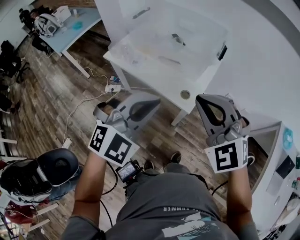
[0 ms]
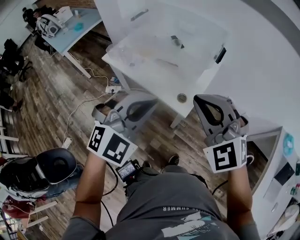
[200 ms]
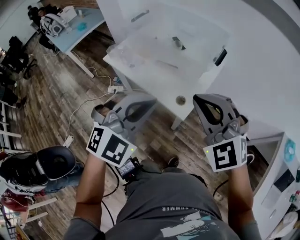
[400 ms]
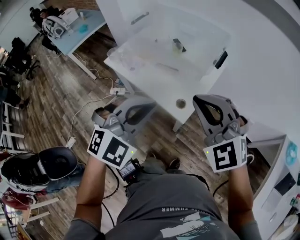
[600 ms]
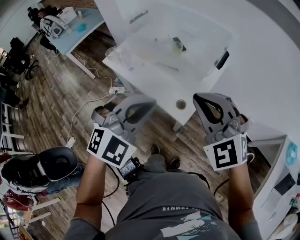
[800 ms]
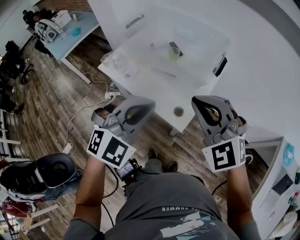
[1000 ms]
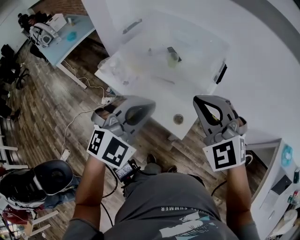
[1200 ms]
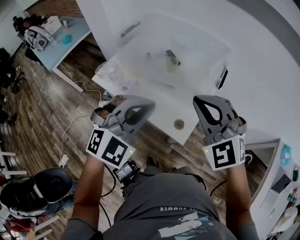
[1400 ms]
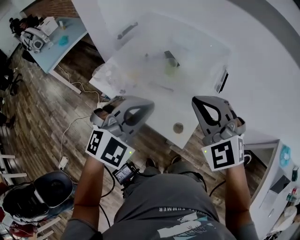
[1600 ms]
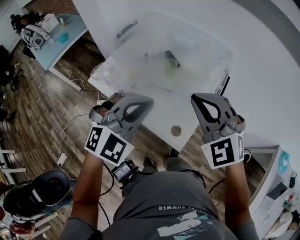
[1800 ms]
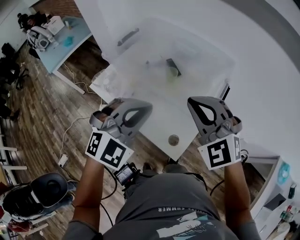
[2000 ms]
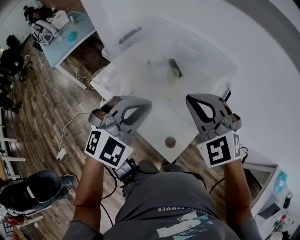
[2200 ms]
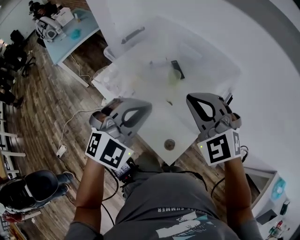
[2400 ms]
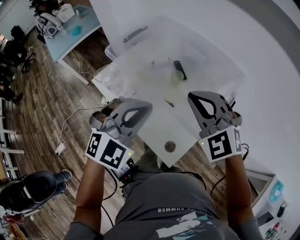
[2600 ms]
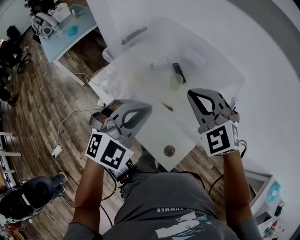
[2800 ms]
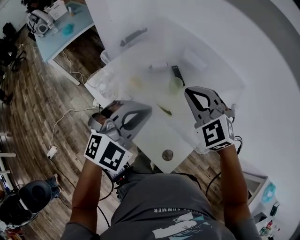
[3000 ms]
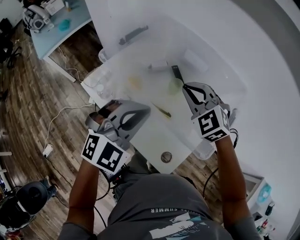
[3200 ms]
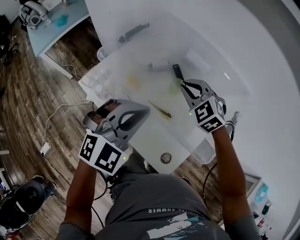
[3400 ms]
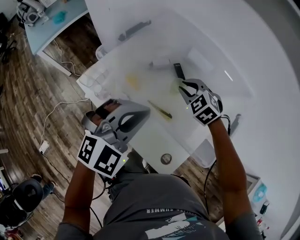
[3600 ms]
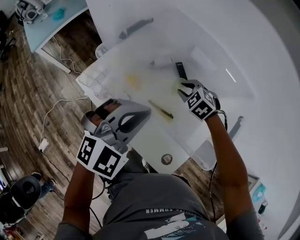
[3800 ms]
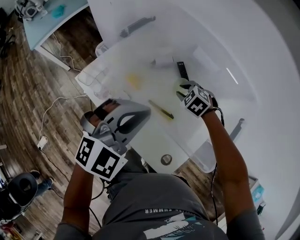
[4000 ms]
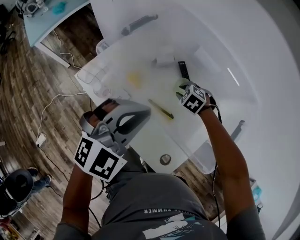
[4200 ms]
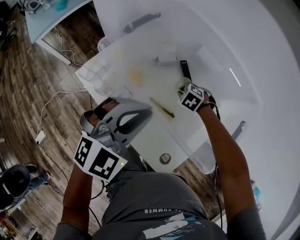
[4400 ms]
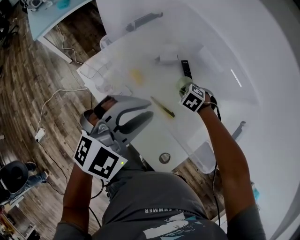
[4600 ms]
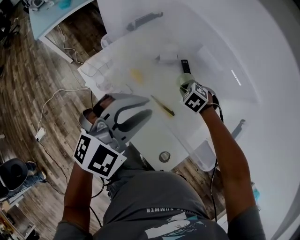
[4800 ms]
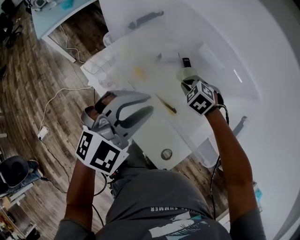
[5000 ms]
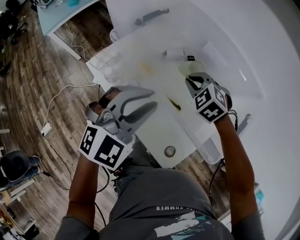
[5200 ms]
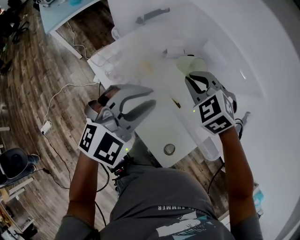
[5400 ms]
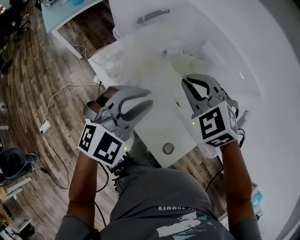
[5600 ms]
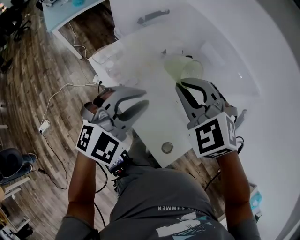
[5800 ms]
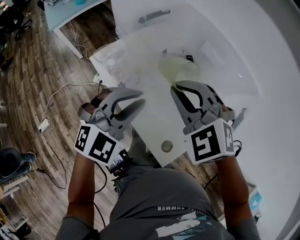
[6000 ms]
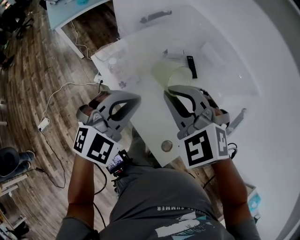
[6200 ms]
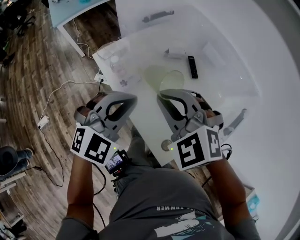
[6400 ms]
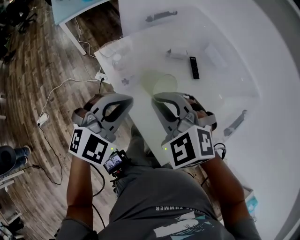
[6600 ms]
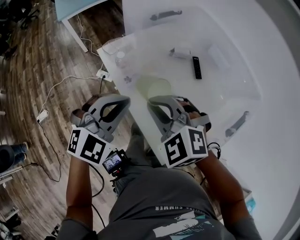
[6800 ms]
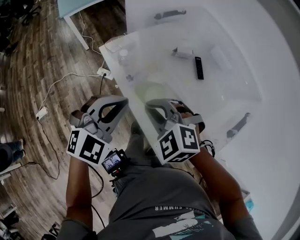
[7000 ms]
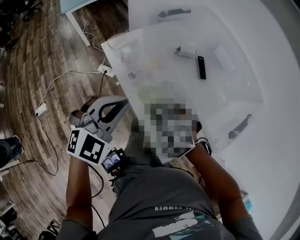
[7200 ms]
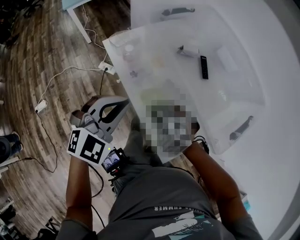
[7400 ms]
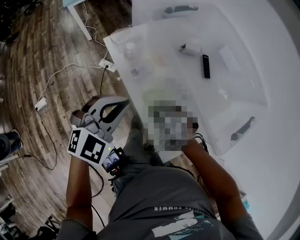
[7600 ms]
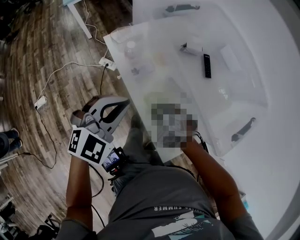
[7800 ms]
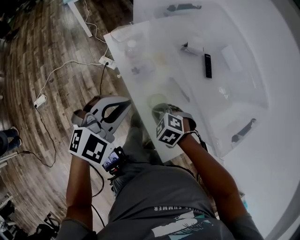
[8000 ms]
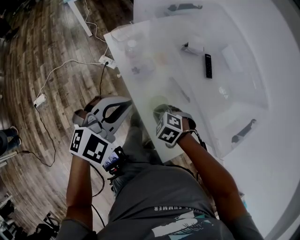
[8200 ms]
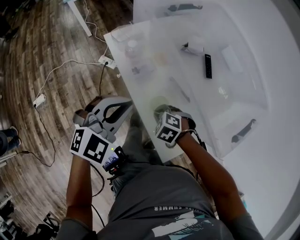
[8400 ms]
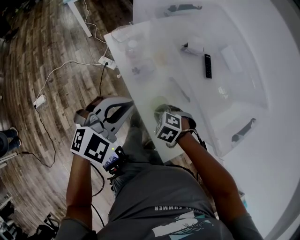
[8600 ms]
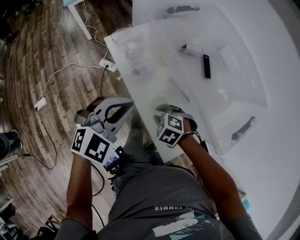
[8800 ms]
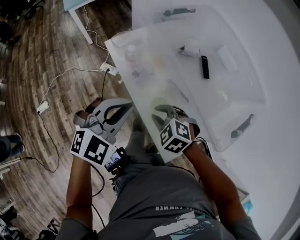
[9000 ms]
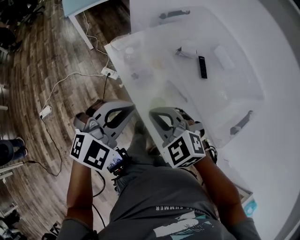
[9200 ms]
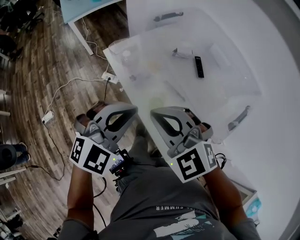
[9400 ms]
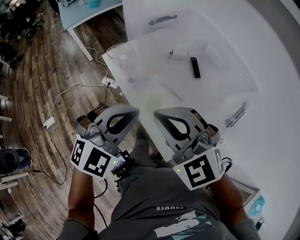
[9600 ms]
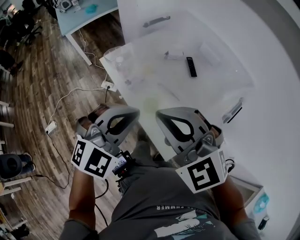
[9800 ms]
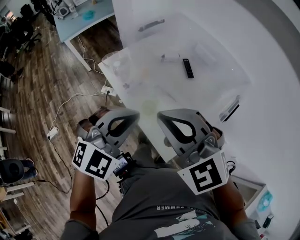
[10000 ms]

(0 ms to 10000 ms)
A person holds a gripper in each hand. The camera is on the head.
0 ms - 1400 ms: Both grippers travel together forward, about 15 cm.
1400 ms - 2800 ms: The grippers both shift forward by roughly 20 cm.
2800 ms - 4200 ms: The right gripper moves downward and forward, about 35 cm, angles its fingers downward, by about 50 degrees, and opens its fingers, while the left gripper shifts approximately 10 cm forward and to the left.
4200 ms - 5800 ms: The right gripper moves upward, roughly 30 cm, tilts its fingers about 40 degrees upward, and closes its fingers, while the left gripper changes place by approximately 5 cm, and opens up.
5800 ms - 7200 ms: The left gripper is displaced to the left by about 10 cm, and closes its fingers; the right gripper shifts roughly 20 cm downward, to the left and backward, and turns by about 20 degrees.
7200 ms - 8600 ms: The right gripper moves downward, some 15 cm, and changes its angle by roughly 30 degrees.
8600 ms - 10000 ms: The left gripper moves upward, about 10 cm. Meanwhile the right gripper travels upward by approximately 40 cm, and tips its fingers upward by roughly 60 degrees.

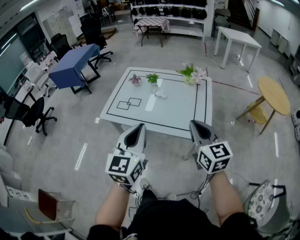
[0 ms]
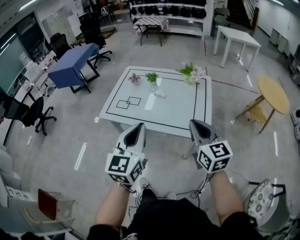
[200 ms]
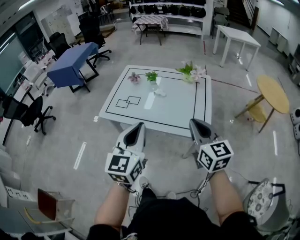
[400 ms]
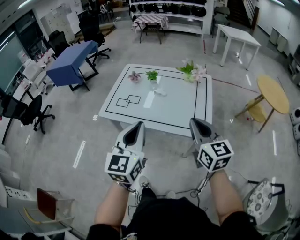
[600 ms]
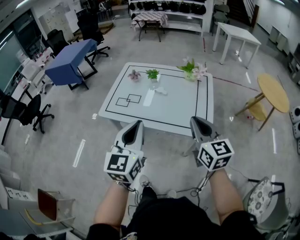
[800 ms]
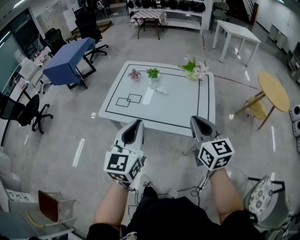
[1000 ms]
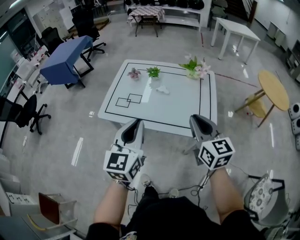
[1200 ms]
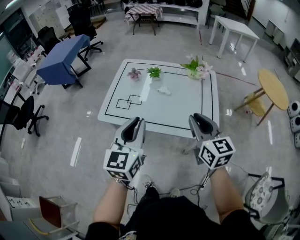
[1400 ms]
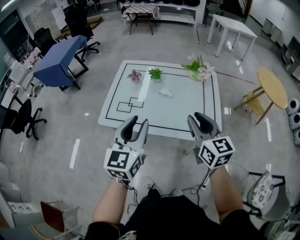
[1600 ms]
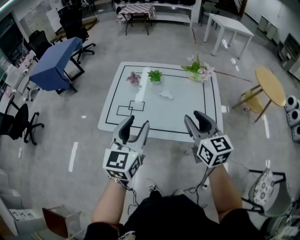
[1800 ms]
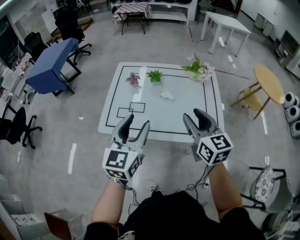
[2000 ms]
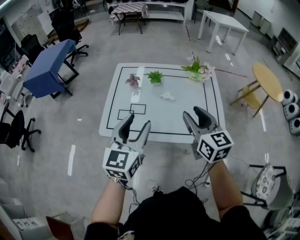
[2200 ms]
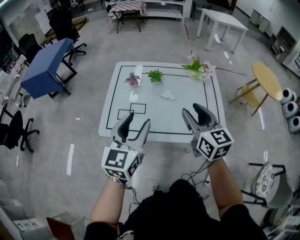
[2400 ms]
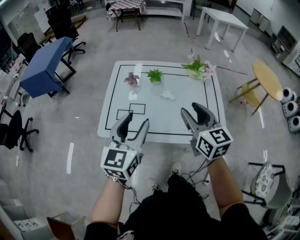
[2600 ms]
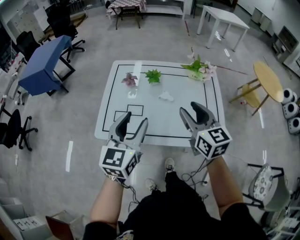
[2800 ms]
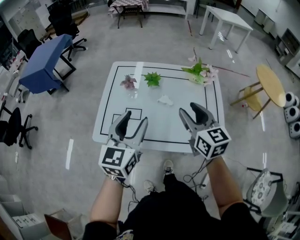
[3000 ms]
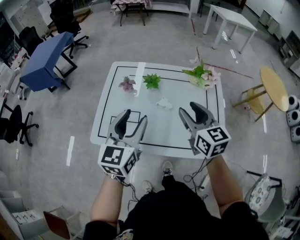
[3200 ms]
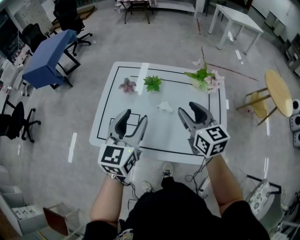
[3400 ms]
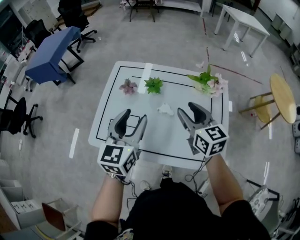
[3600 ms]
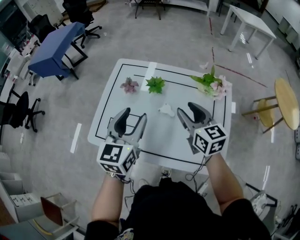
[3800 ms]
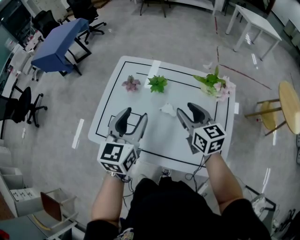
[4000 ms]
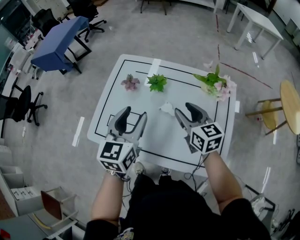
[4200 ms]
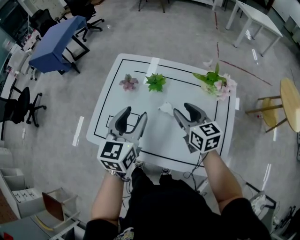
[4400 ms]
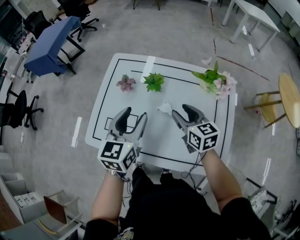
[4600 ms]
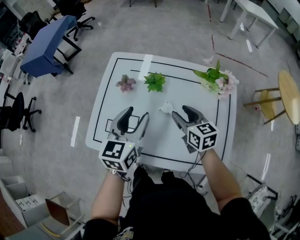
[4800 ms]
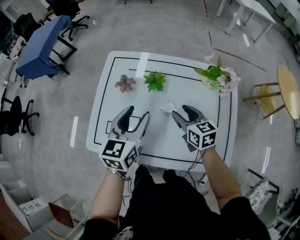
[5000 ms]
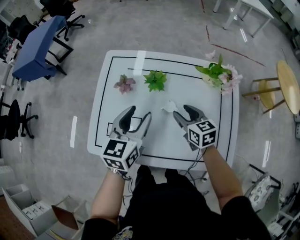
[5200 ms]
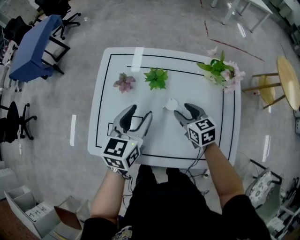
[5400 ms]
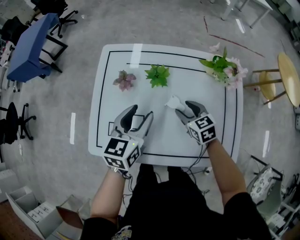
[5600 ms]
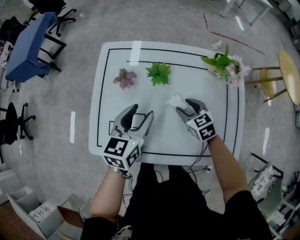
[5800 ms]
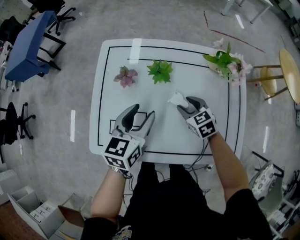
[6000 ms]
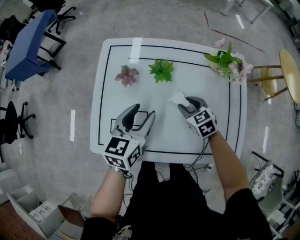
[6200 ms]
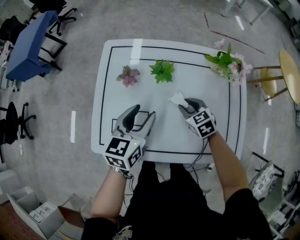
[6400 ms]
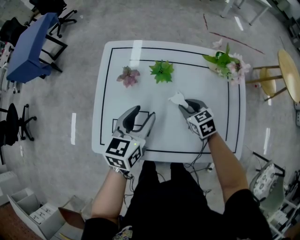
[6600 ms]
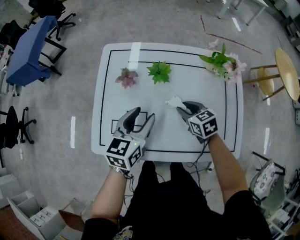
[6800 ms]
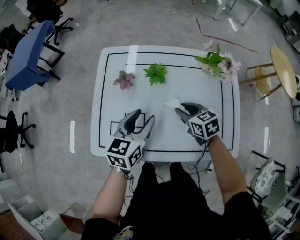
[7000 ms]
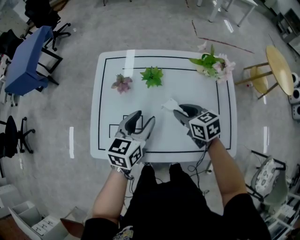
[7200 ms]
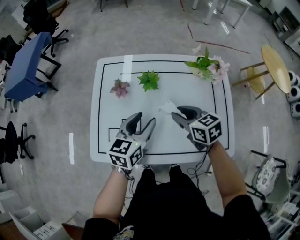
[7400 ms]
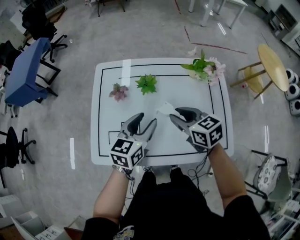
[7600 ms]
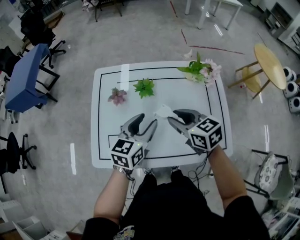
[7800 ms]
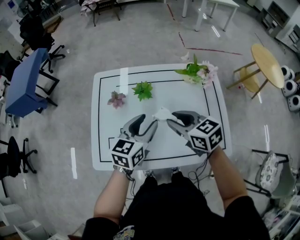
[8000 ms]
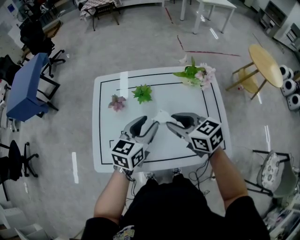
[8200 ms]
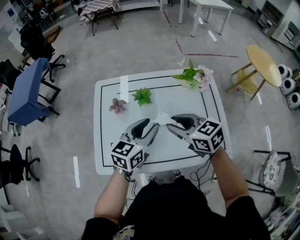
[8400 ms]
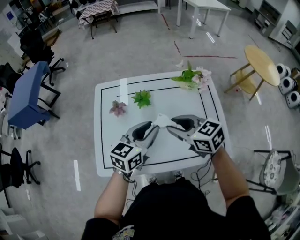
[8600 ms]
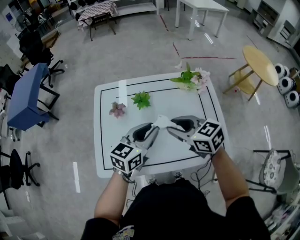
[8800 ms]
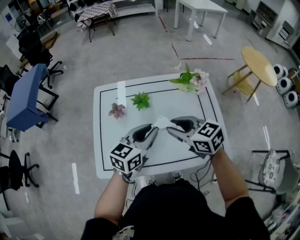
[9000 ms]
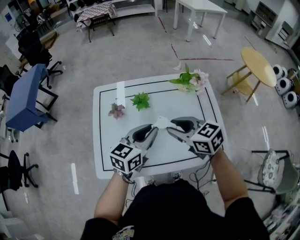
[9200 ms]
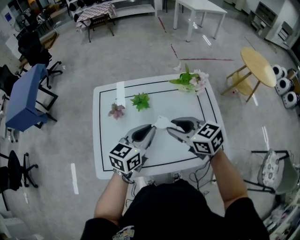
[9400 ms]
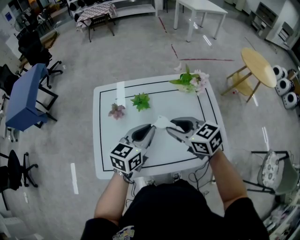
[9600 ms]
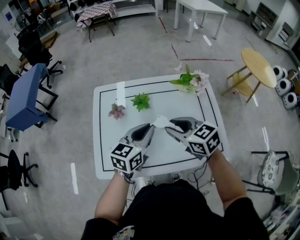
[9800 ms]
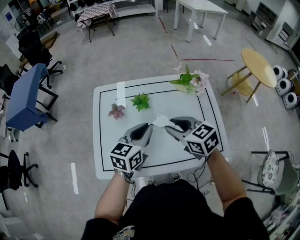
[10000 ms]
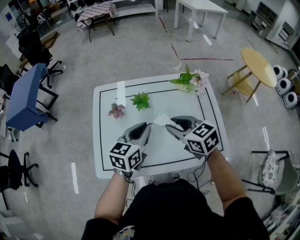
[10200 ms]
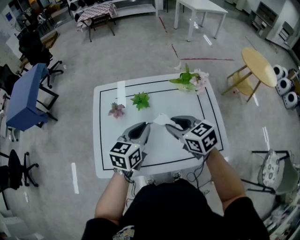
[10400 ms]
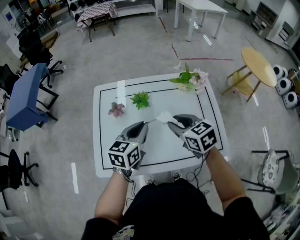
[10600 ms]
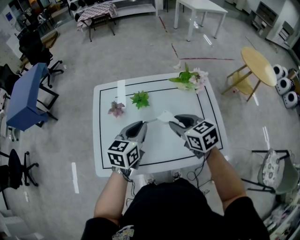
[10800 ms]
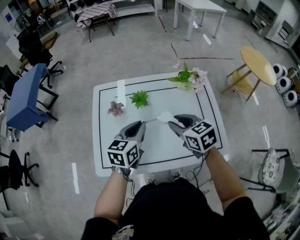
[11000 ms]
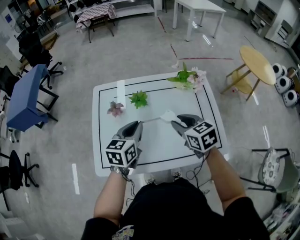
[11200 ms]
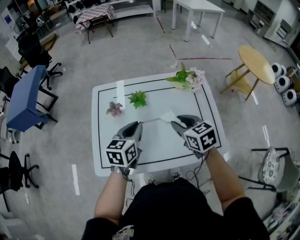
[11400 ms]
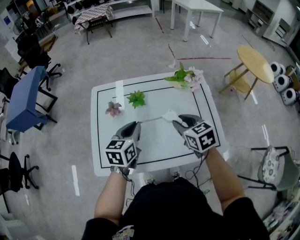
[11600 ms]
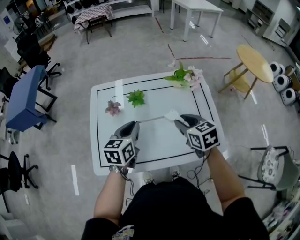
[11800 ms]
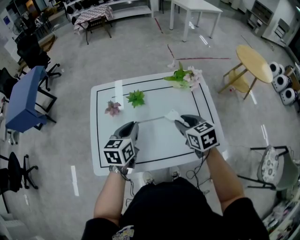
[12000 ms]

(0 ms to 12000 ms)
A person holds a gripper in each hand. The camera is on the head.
0 ms - 1600 ms: The two grippers go roughly 15 cm forward and to the left. The left gripper opens; the right gripper opens its fingers.
1600 ms - 3000 ms: The two grippers go approximately 15 cm forward. The left gripper opens.
3000 ms - 4400 ms: The right gripper goes about 20 cm forward and downward. Meanwhile the left gripper goes approximately 15 cm forward, downward and to the right.
4400 ms - 6000 ms: The right gripper heads downward, covering roughly 15 cm, and rotates about 30 degrees, while the left gripper heads downward and forward, covering some 10 cm, and changes its angle by about 20 degrees.
6000 ms - 7600 ms: The left gripper ends up some 5 cm from where it was. Meanwhile the right gripper goes some 15 cm upward, and changes its angle by some 20 degrees.
7600 ms - 9000 ms: Both grippers move upward, about 5 cm. The left gripper closes its fingers.
9000 ms - 10400 ms: The grippers move only a little.
10400 ms - 12000 ms: The right gripper shifts approximately 5 cm to the right.

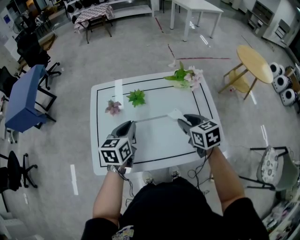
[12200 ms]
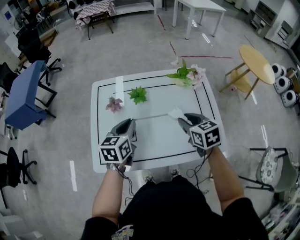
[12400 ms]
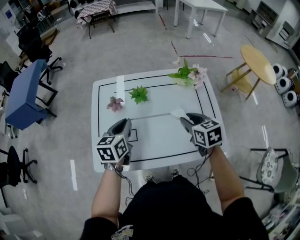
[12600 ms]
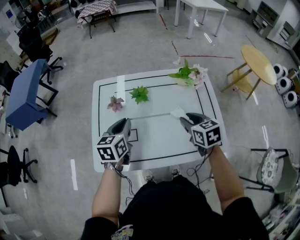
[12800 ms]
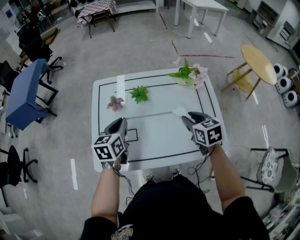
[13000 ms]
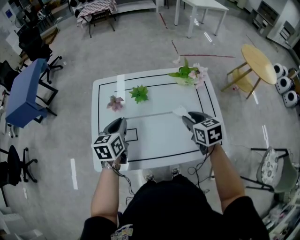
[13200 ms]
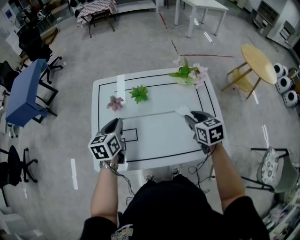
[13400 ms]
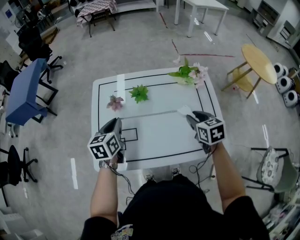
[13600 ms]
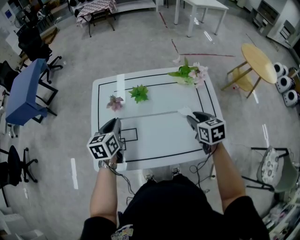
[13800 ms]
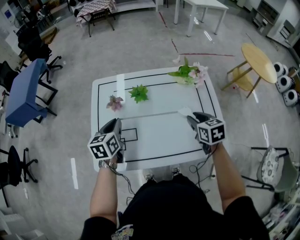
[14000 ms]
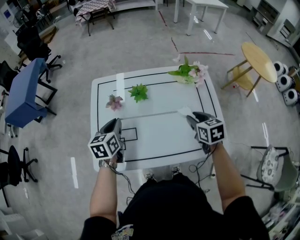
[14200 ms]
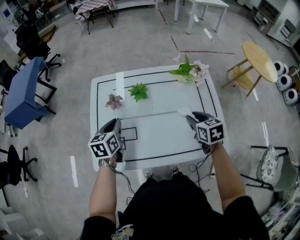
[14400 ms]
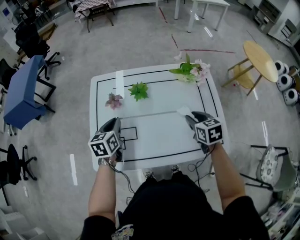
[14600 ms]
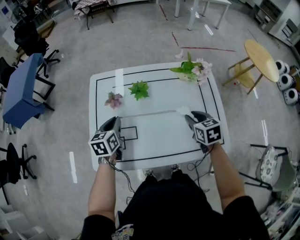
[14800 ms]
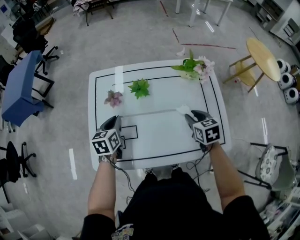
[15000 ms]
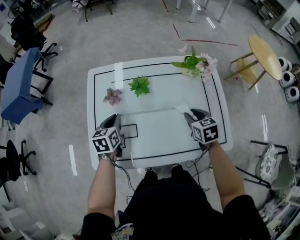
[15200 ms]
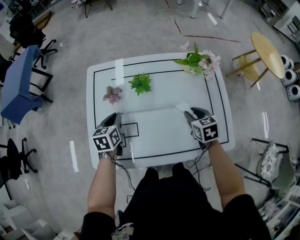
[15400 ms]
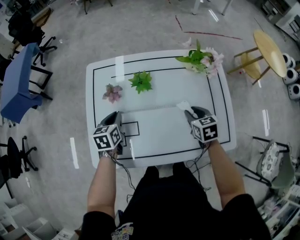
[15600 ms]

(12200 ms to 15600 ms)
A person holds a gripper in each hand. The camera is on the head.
12200 ms - 13800 ms: The right gripper changes place by roughly 5 cm. Meanwhile the left gripper is displaced to the left by roughly 10 cm.
13800 ms - 15600 ms: Both grippers travel together downward, approximately 10 cm.
